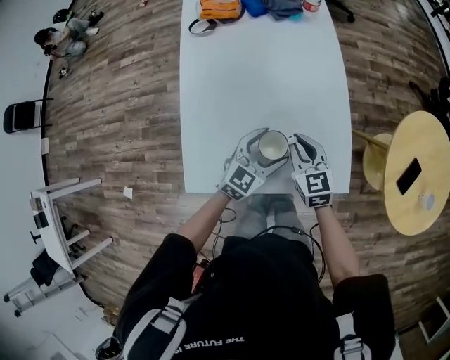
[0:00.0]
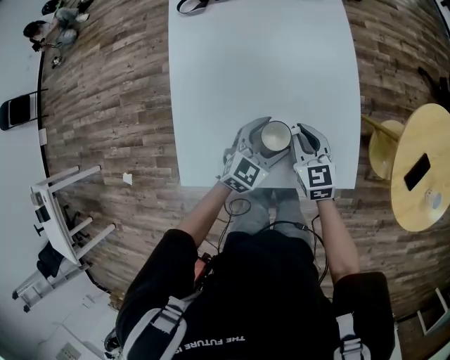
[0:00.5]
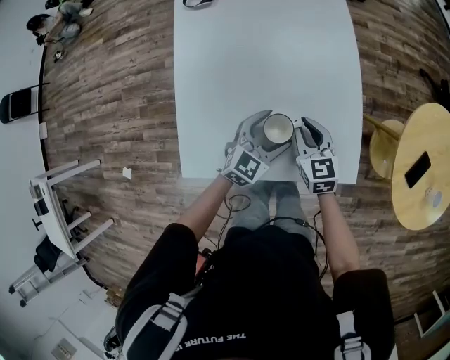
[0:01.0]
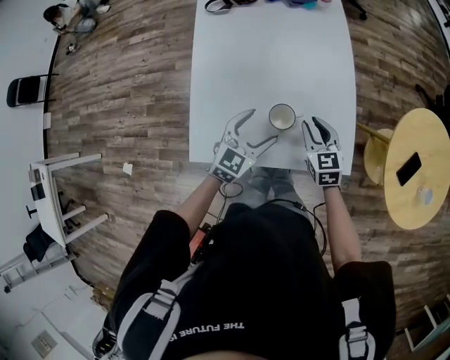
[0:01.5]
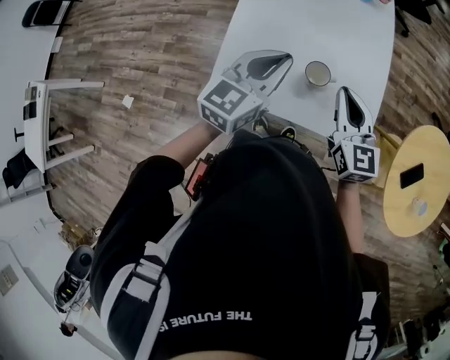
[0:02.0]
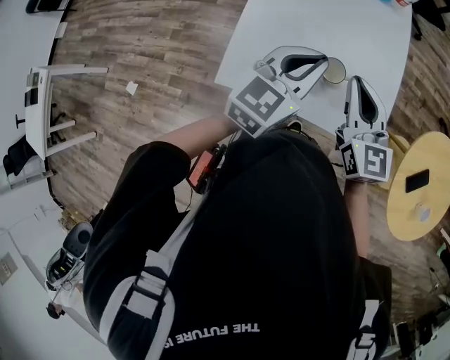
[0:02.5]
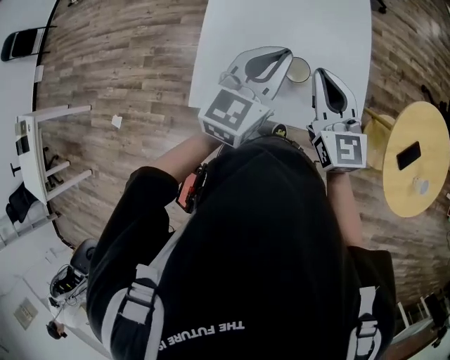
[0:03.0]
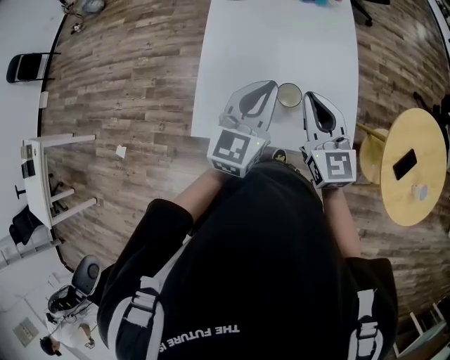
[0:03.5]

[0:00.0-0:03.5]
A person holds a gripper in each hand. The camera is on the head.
0:00.0 to 0:02.0: The right gripper shifts approximately 15 cm upward and backward. Meanwhile the left gripper travels upward and to the left by some 20 cm, rotates about 30 degrees, and closes.
0:02.0 to 0:03.5: The grippers make only small movements.

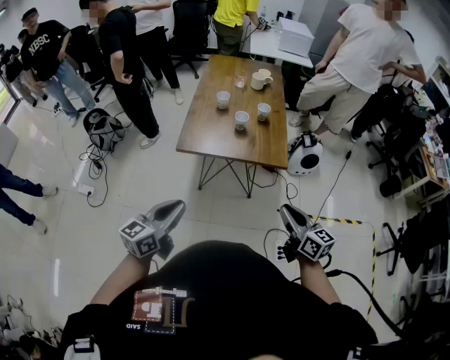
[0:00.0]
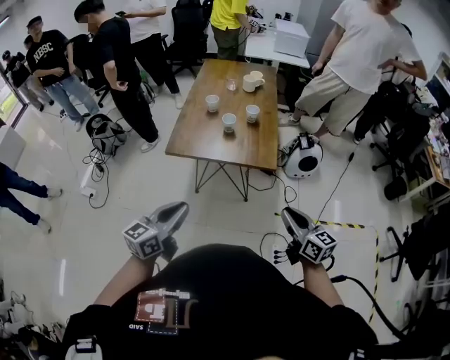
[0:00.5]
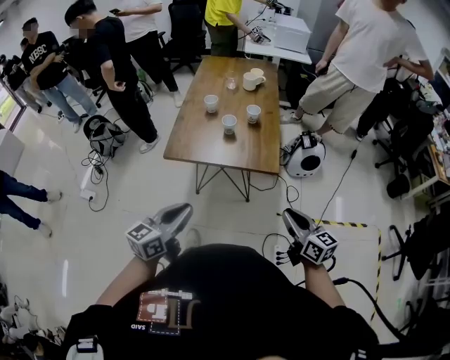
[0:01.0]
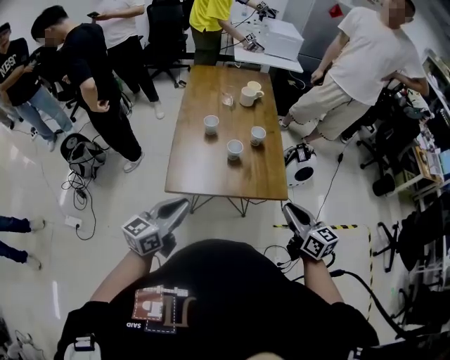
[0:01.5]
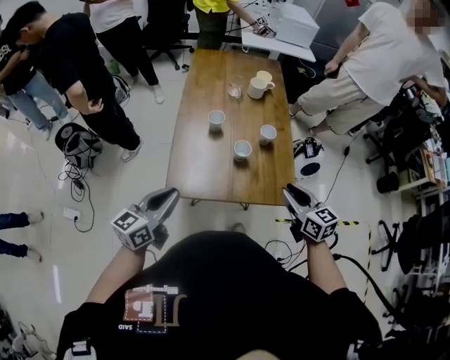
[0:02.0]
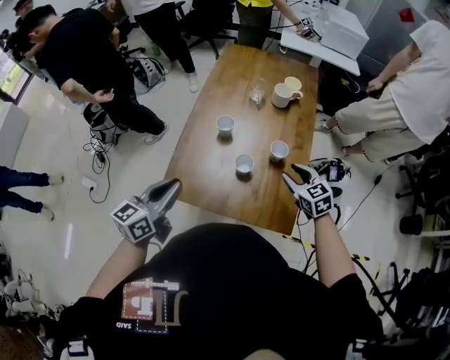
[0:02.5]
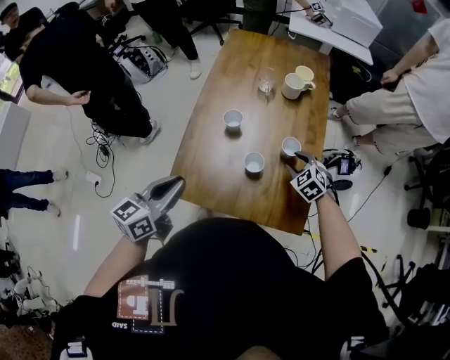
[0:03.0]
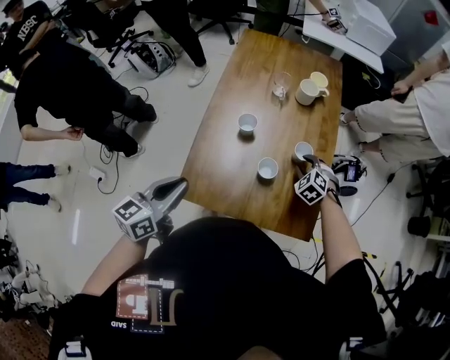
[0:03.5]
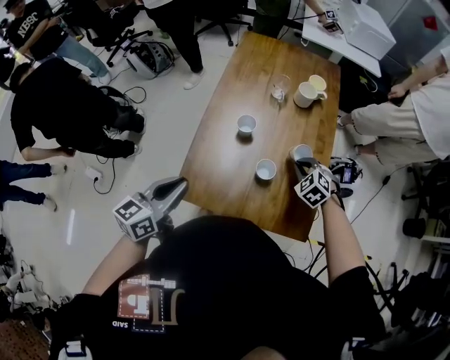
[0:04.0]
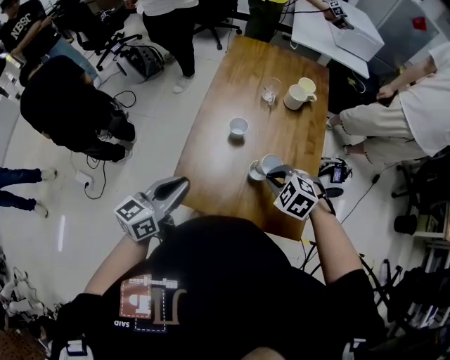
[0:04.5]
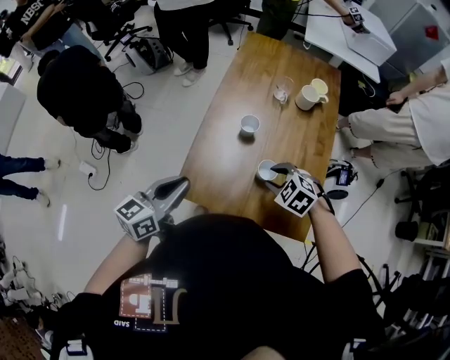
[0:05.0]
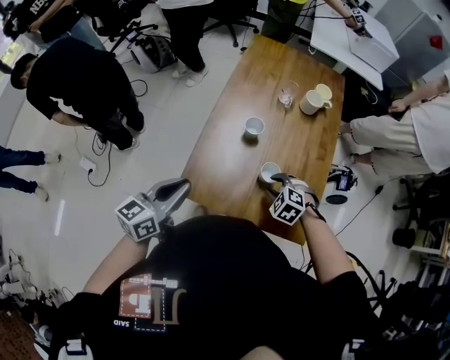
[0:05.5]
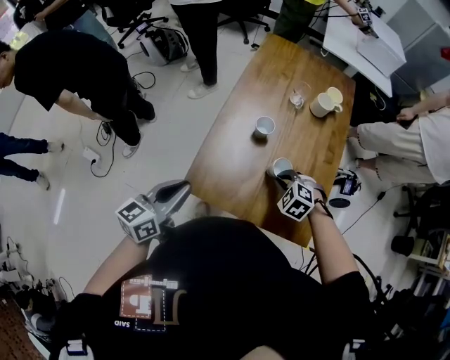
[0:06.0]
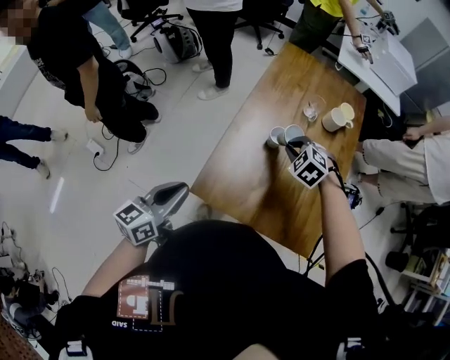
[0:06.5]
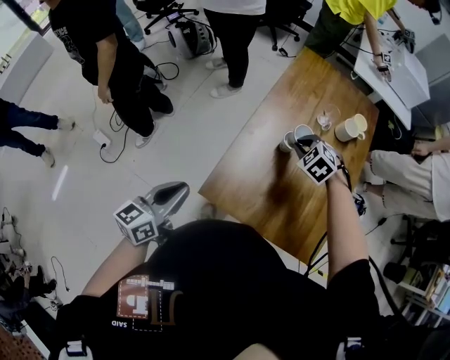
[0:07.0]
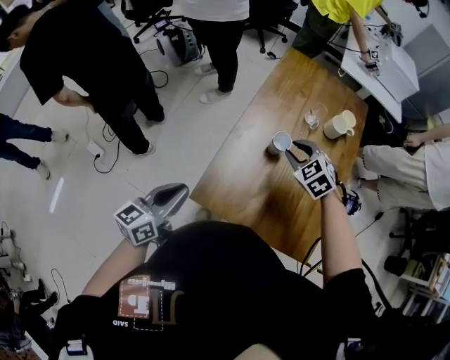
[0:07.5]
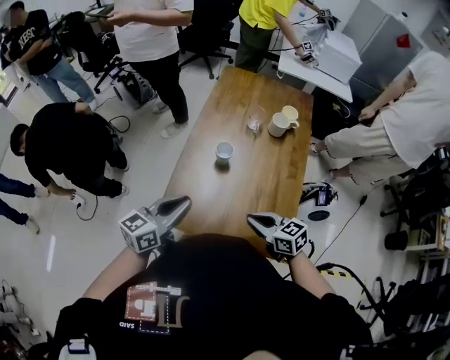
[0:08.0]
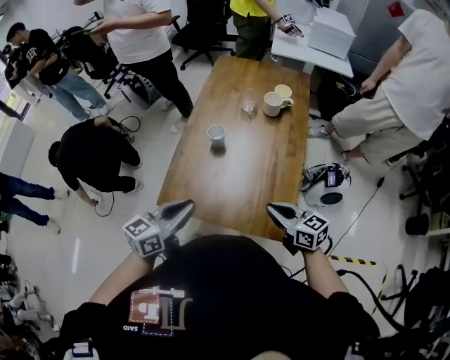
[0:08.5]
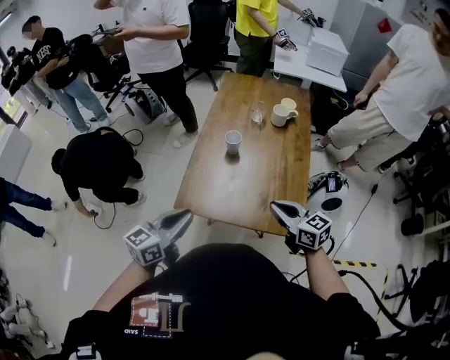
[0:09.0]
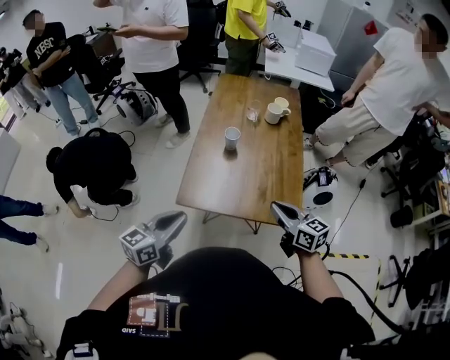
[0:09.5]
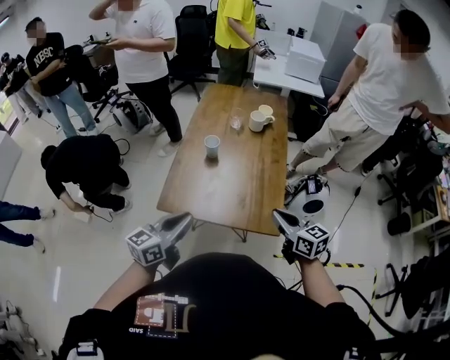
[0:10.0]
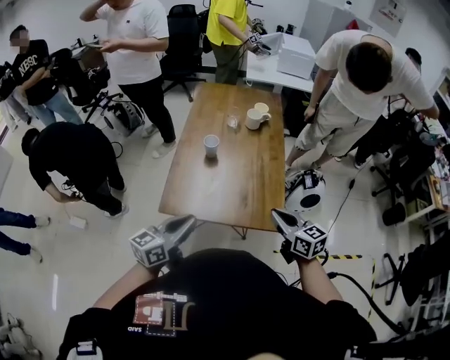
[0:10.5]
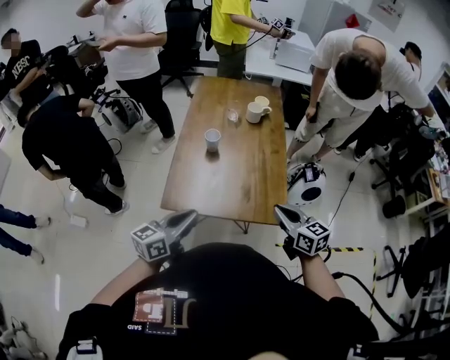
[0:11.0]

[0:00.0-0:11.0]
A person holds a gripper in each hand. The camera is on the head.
0:00.0 to 0:02.0: Both grippers travel together forward, roughly 30 cm.
0:02.0 to 0:03.5: The left gripper heads forward, covering some 10 cm. The right gripper moves forward and downward, about 30 cm, and rolls counterclockwise, seen from behind, by roughly 60 degrees.
0:03.5 to 0:05.5: The right gripper moves to the left and backward, about 15 cm, swivels approximately 20 degrees, and closes and opens again.
0:05.5 to 0:07.5: The left gripper goes about 10 cm to the left. Meanwhile the right gripper moves forward, upward and to the left, some 20 cm, and closes and opens again.
0:07.5 to 0:09.0: The right gripper goes about 30 cm backward, points its fingers roughly 30 degrees further upward, and closes. The left gripper heads backward and to the right, covering some 15 cm.
0:09.0 to 0:11.0: The right gripper travels backward and to the right by approximately 10 cm.

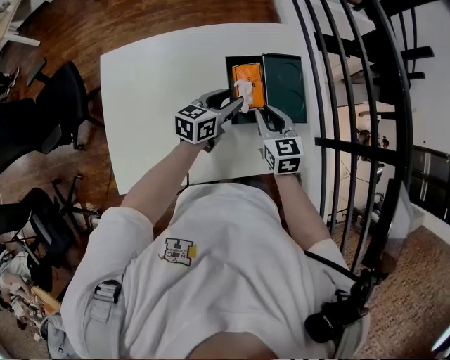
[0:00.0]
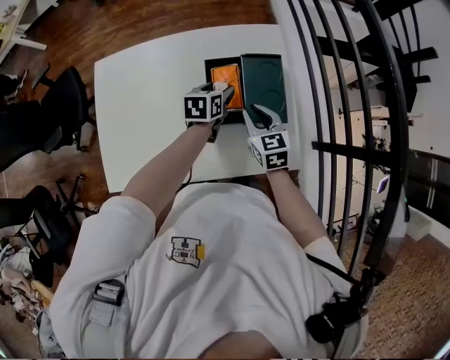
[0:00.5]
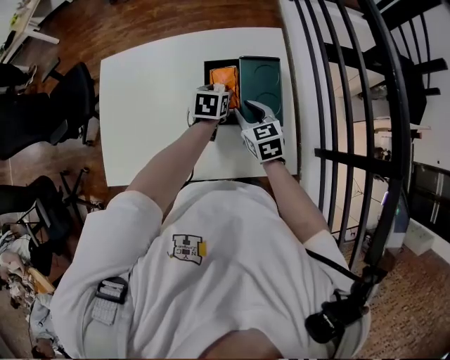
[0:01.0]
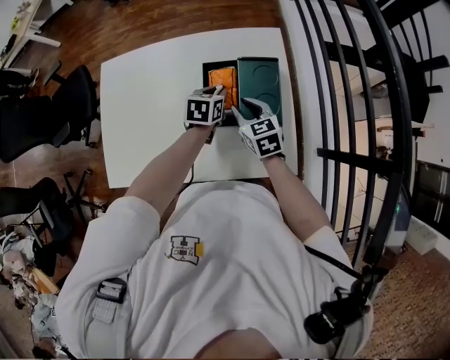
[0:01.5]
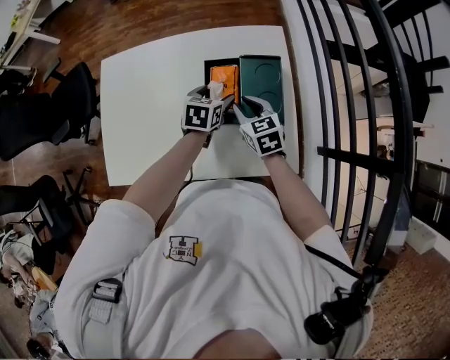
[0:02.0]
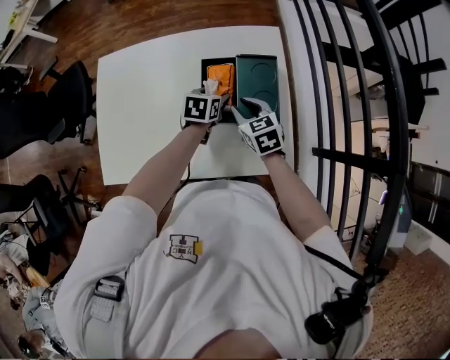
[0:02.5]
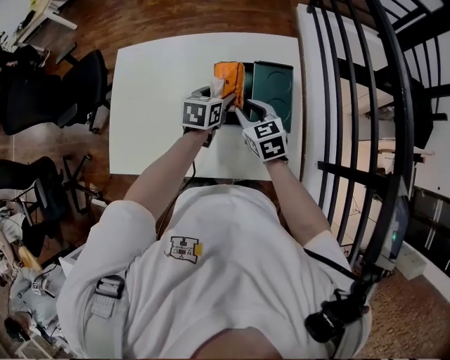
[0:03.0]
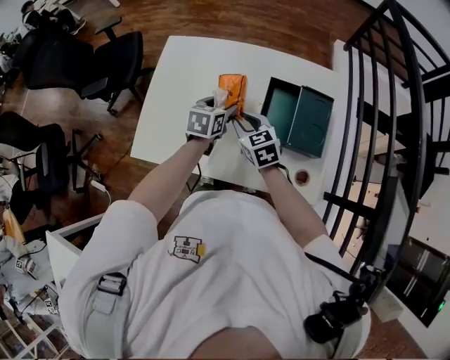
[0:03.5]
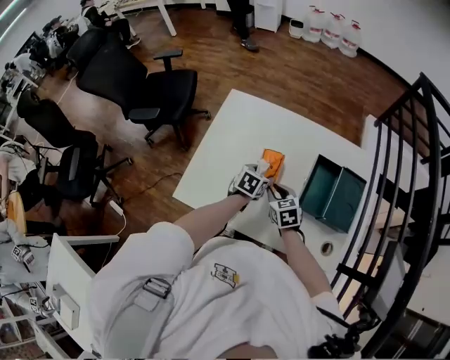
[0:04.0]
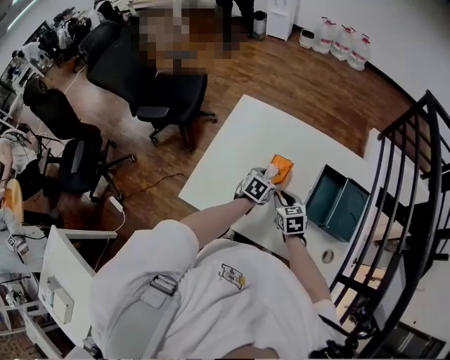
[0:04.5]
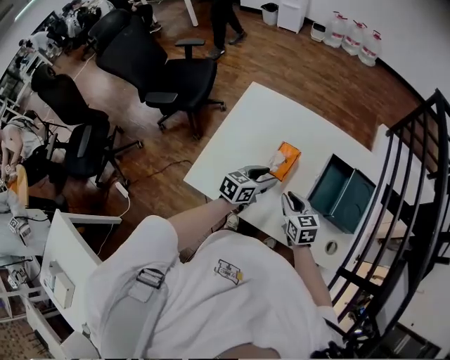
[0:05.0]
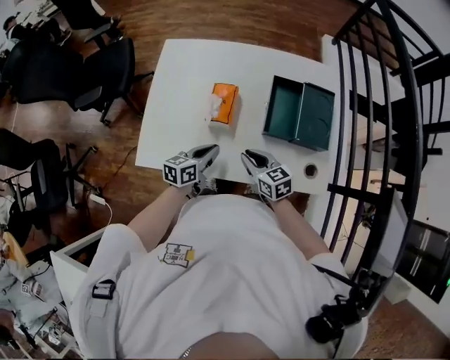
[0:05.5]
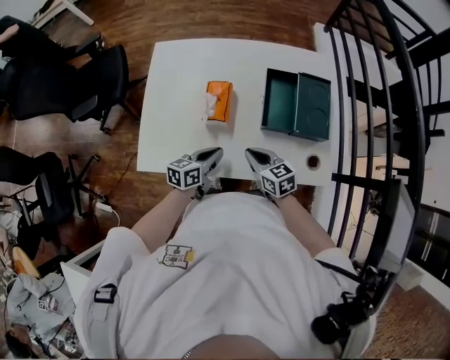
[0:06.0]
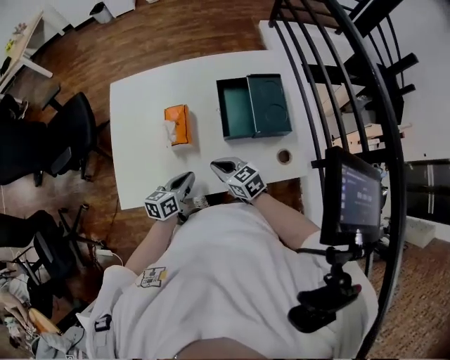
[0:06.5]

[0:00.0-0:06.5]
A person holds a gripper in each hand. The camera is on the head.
0:00.0 to 0:02.0: The left gripper changes its angle by some 30 degrees, and opens up.
0:02.0 to 0:04.5: The two grippers go approximately 20 cm to the left.
0:04.5 to 0:06.5: The right gripper moves backward, some 10 cm. The left gripper moves backward, about 15 cm, changes its angle by about 30 degrees, and closes up.

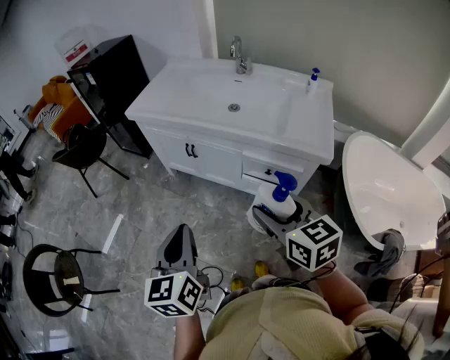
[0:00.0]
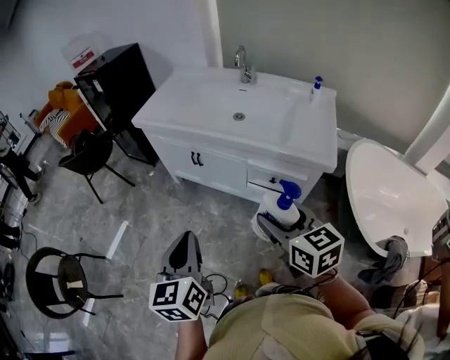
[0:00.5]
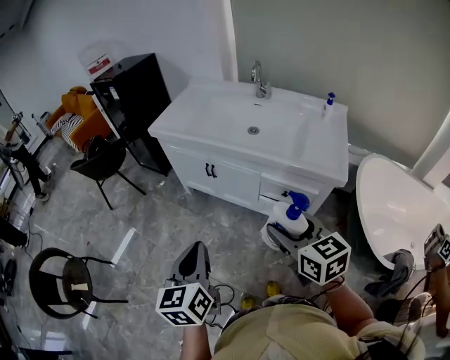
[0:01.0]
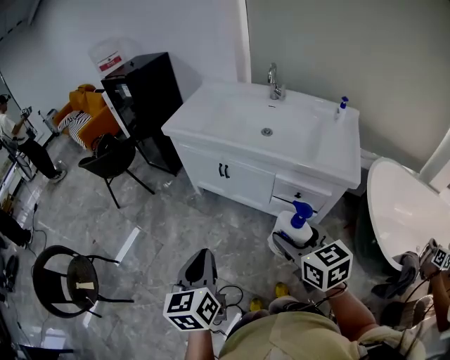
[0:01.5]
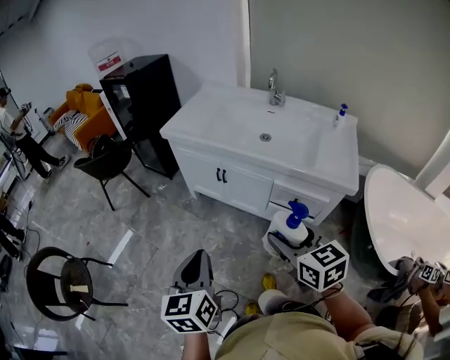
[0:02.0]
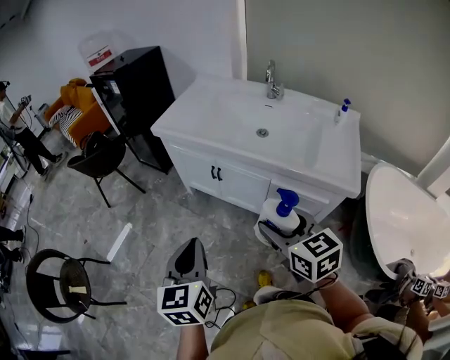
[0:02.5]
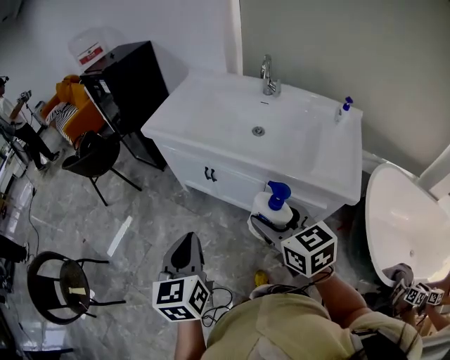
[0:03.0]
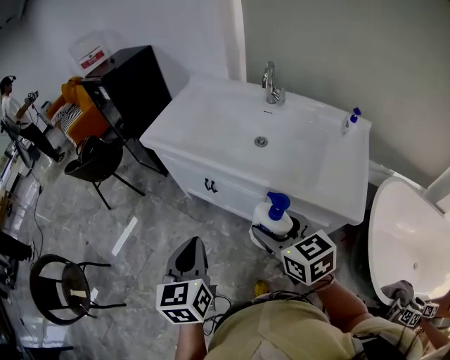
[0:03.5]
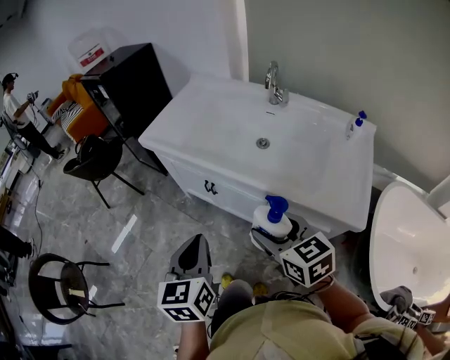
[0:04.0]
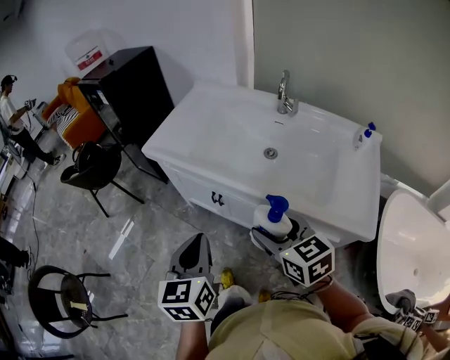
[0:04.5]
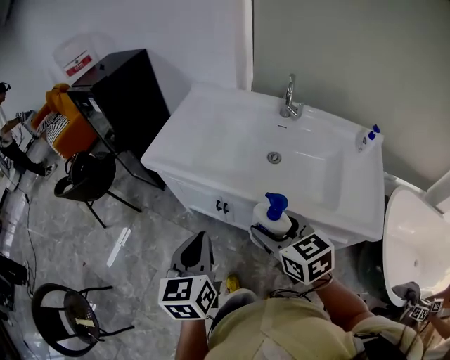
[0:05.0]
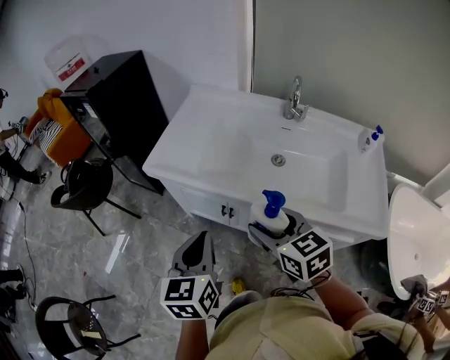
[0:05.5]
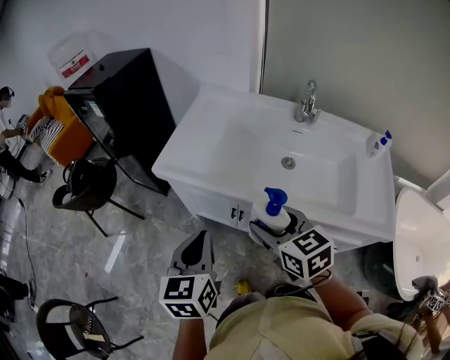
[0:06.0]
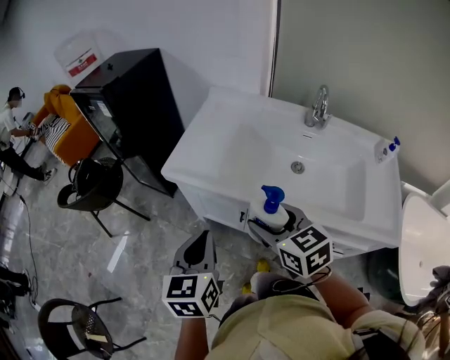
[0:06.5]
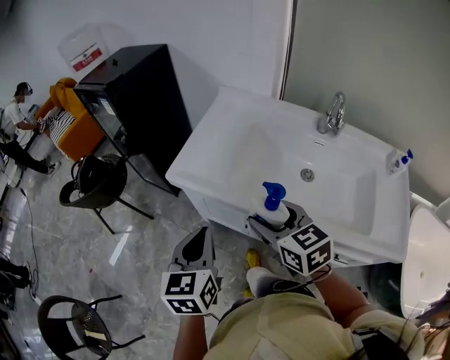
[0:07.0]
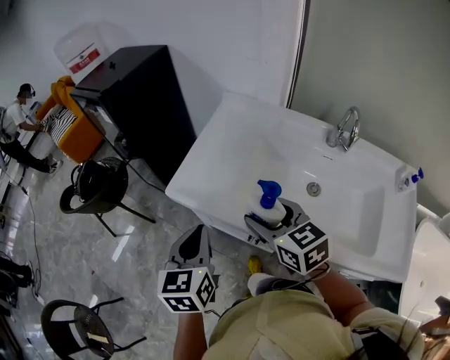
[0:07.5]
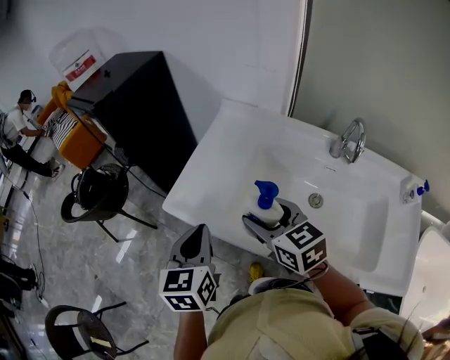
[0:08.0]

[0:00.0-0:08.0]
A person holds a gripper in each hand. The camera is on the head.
0:00.0 to 0:02.0: The grippers both shift to the left by about 10 cm.
0:02.0 to 0:04.0: The grippers both shift forward and to the right by some 20 cm.
0:04.0 to 0:06.0: Both grippers travel together forward and to the left, roughly 25 cm.
0:06.0 to 0:08.0: Both grippers travel together forward, approximately 20 cm.
